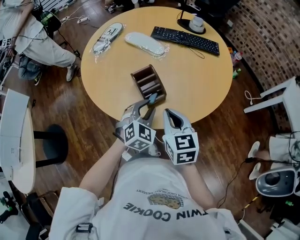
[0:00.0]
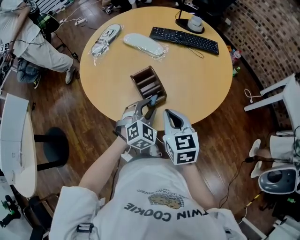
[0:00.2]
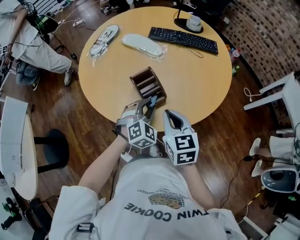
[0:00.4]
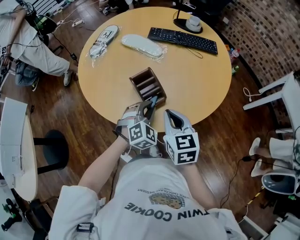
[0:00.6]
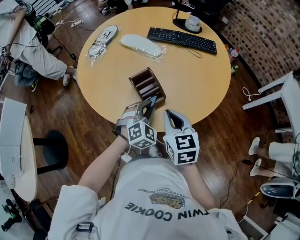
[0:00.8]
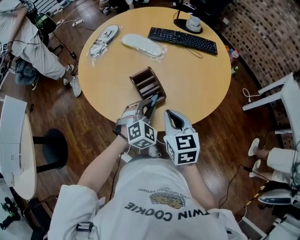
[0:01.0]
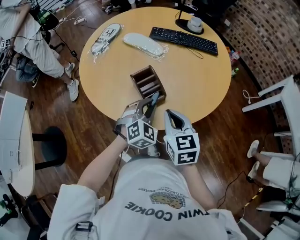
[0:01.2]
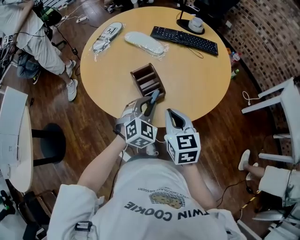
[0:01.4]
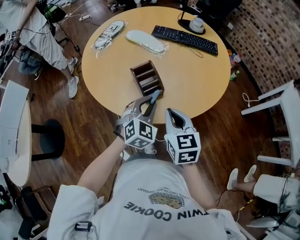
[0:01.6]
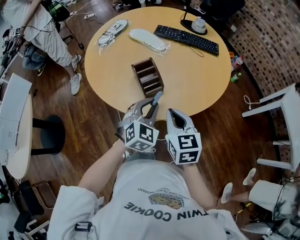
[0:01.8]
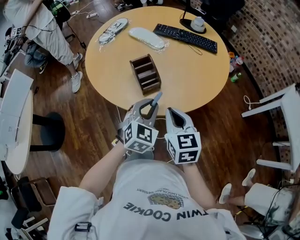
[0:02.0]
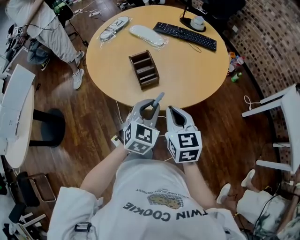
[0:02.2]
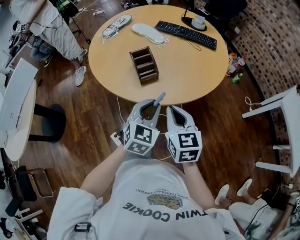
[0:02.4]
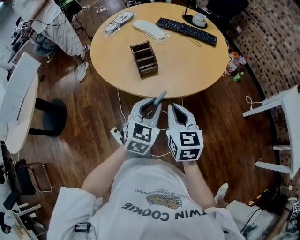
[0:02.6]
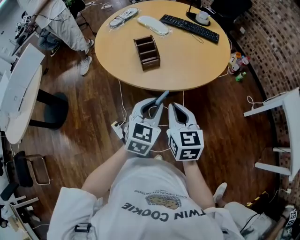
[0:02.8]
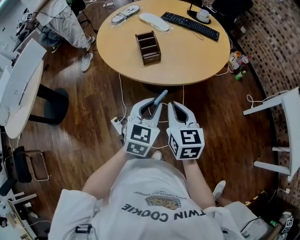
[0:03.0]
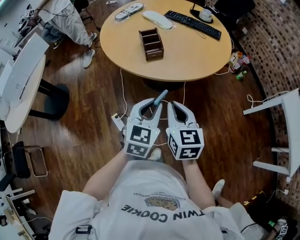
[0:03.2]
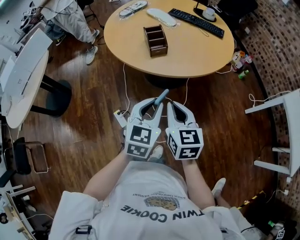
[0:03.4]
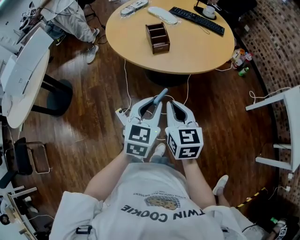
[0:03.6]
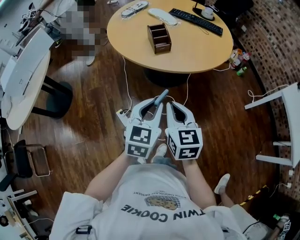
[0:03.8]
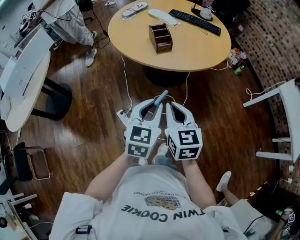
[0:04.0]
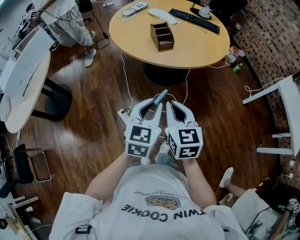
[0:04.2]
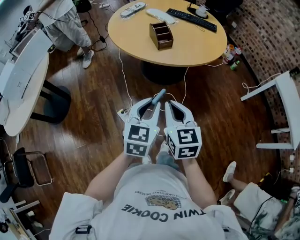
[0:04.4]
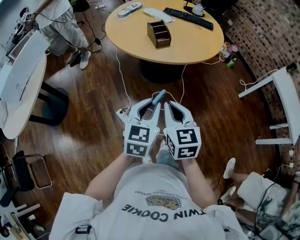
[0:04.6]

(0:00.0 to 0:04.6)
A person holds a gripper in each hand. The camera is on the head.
0:00.0 - 0:01.6: The grippers move only a little.
0:01.6 - 0:03.0: The right gripper is displaced backward and to the right by approximately 20 cm. Meanwhile the left gripper shifts about 25 cm backward, and rotates approximately 30 degrees.
0:03.0 - 0:04.6: Both grippers travel together backward and to the left, some 20 cm.

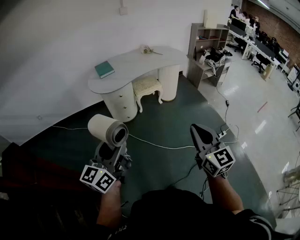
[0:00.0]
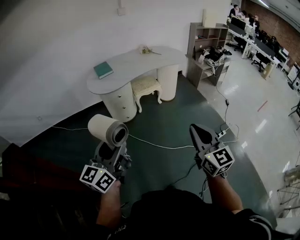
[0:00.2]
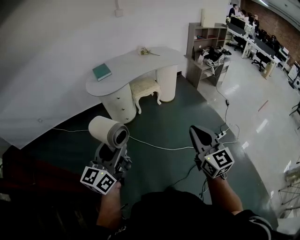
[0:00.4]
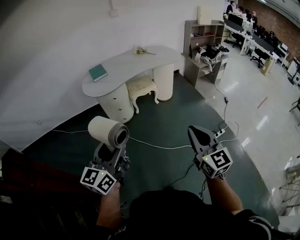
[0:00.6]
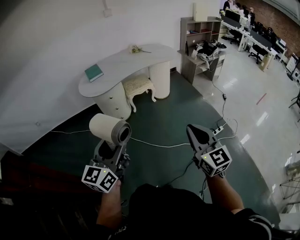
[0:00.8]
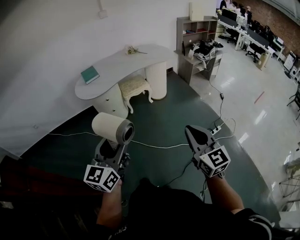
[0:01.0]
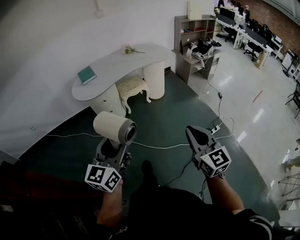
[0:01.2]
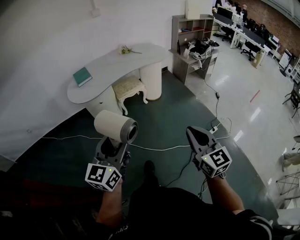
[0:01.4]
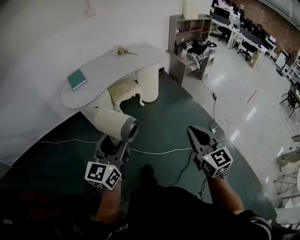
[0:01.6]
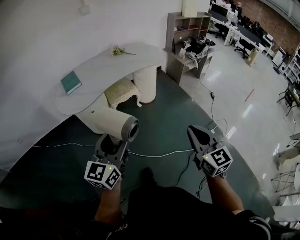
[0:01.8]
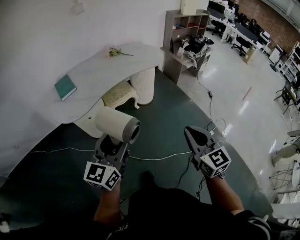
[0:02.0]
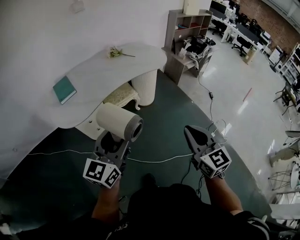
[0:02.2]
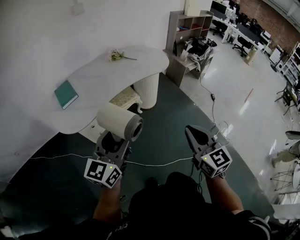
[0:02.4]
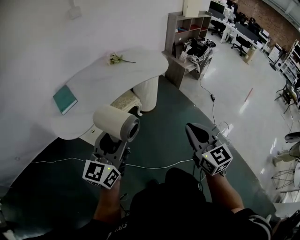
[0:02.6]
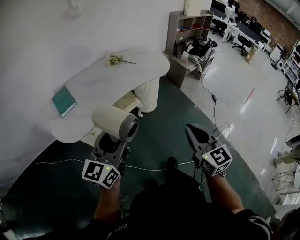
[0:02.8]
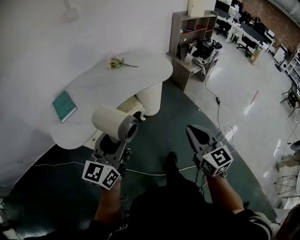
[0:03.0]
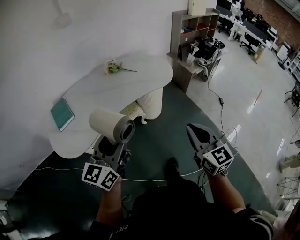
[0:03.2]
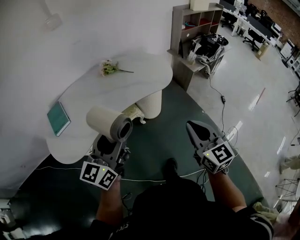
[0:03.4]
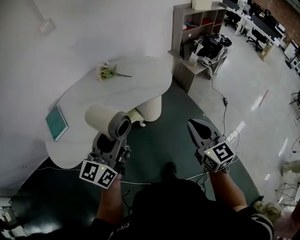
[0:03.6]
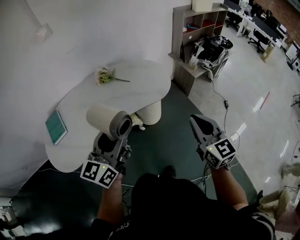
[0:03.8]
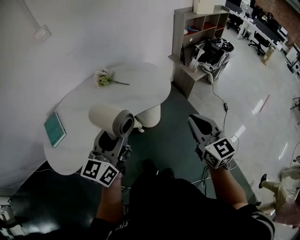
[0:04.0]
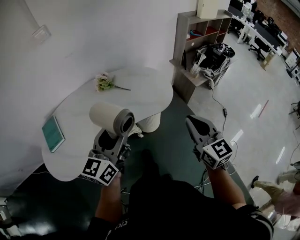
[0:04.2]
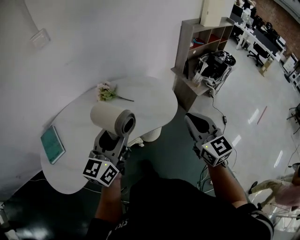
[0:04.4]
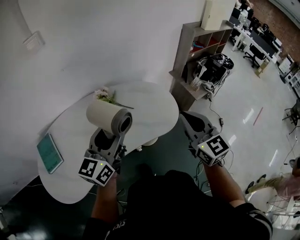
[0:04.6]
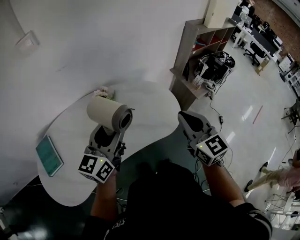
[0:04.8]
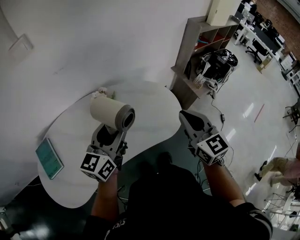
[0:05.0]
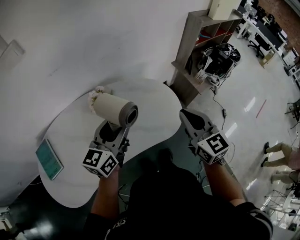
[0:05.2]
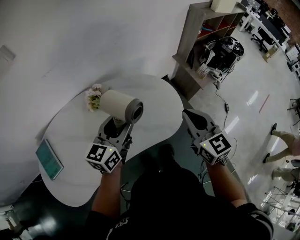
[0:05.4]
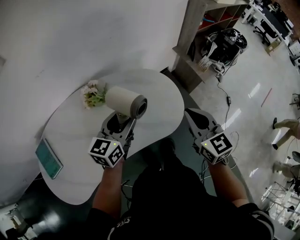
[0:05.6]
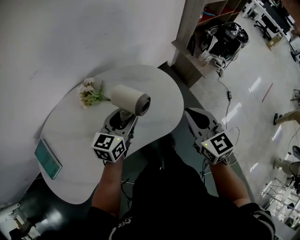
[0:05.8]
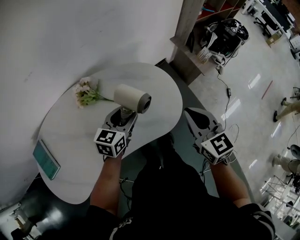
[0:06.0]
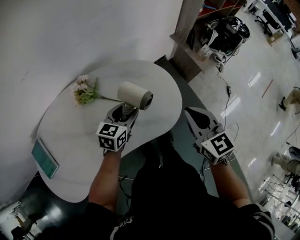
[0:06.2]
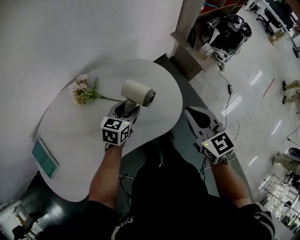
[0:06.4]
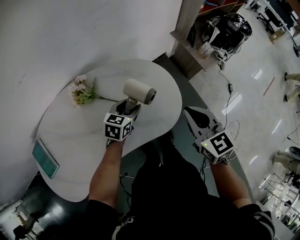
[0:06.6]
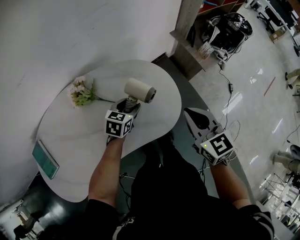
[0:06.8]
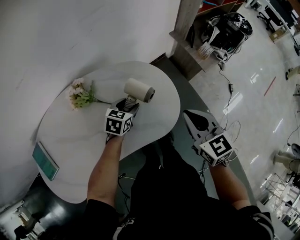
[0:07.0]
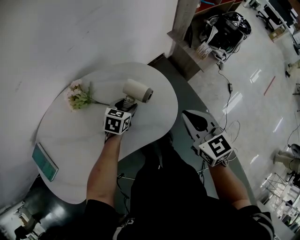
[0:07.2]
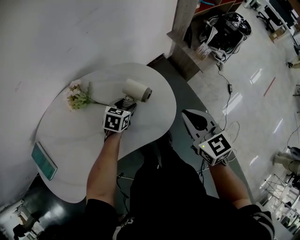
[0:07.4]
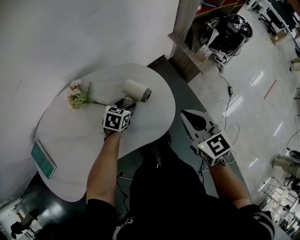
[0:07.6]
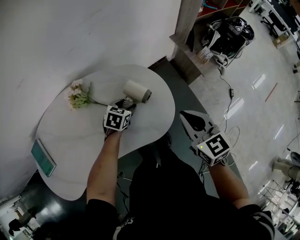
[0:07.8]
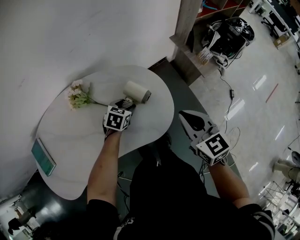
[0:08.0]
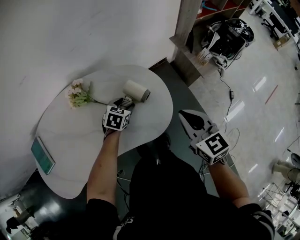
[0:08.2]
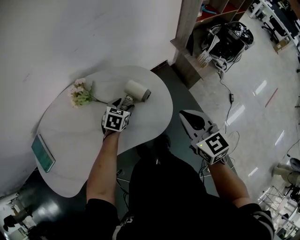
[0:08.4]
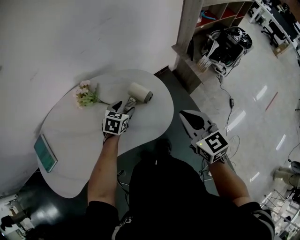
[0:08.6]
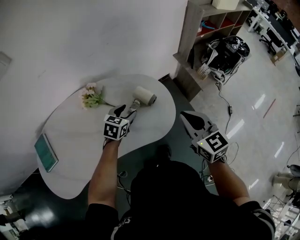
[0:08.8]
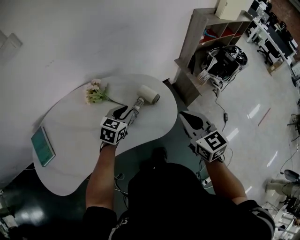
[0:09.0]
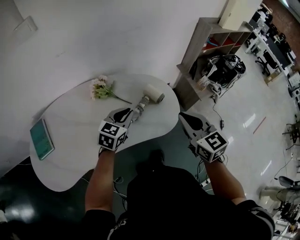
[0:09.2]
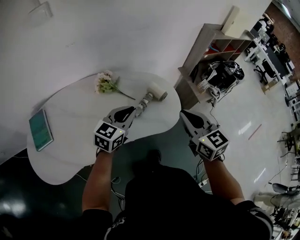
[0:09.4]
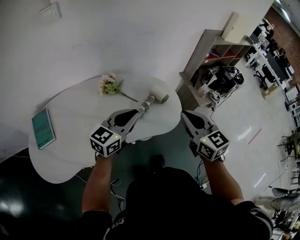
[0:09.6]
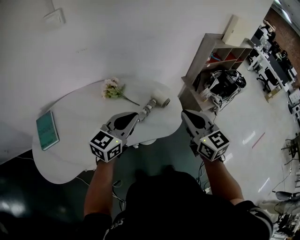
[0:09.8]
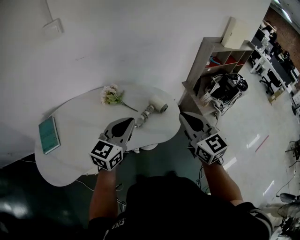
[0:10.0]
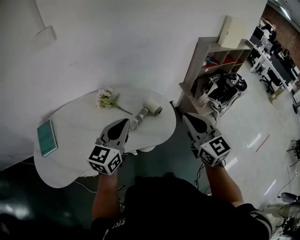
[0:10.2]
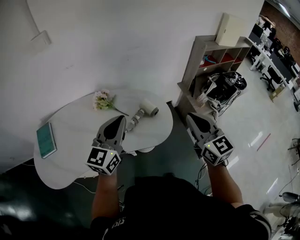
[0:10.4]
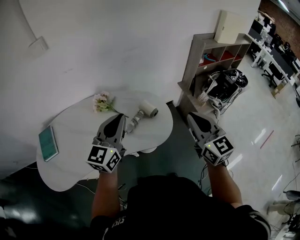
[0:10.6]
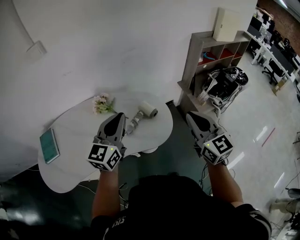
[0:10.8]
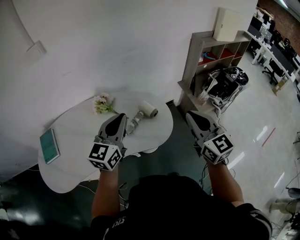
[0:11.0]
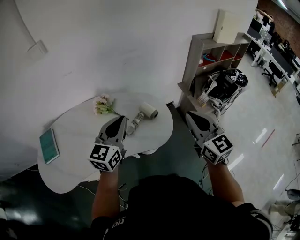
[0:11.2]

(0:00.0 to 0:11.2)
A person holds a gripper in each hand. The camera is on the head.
0:00.0 - 0:01.6: The right gripper moves to the right and forward, approximately 15 cm. Meanwhile the left gripper heads forward and to the right, covering some 25 cm.
0:01.6 - 0:03.2: Both grippers are carried forward, approximately 40 cm.
0:03.2 - 0:04.8: Both grippers are carried forward, roughly 40 cm.
0:04.8 - 0:06.4: The left gripper travels downward, forward and to the right by some 35 cm, and points its fingers some 40 degrees further downward. The right gripper is displaced downward, forward and to the right by some 20 cm.
0:06.4 - 0:08.0: The left gripper is displaced downward by some 10 cm.
0:08.0 - 0:09.6: The left gripper travels upward and backward by roughly 35 cm, tips its fingers upward by approximately 50 degrees, and closes, while the right gripper is displaced upward, to the left and backward by roughly 20 cm.
0:09.6 - 0:11.2: The right gripper goes approximately 15 cm to the right, while the left gripper is displaced upward and to the right by approximately 10 cm, and swivels roughly 20 degrees.

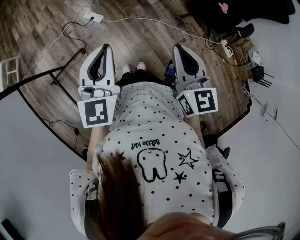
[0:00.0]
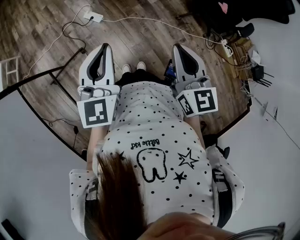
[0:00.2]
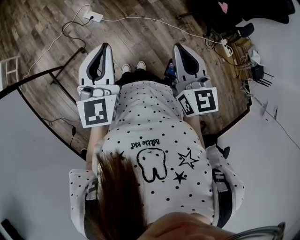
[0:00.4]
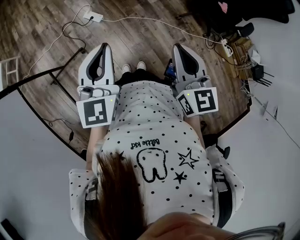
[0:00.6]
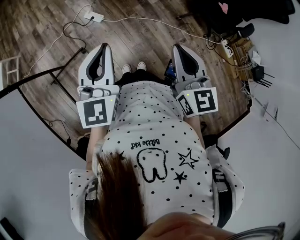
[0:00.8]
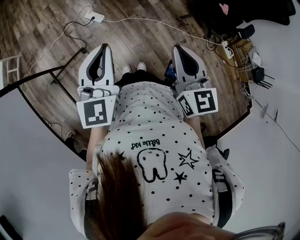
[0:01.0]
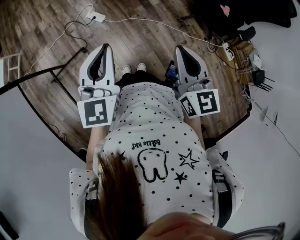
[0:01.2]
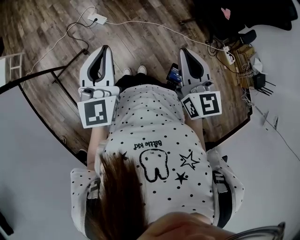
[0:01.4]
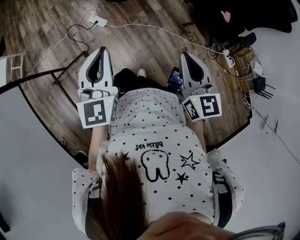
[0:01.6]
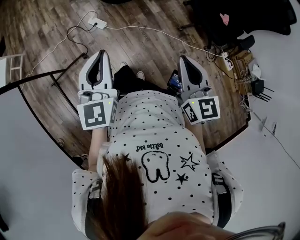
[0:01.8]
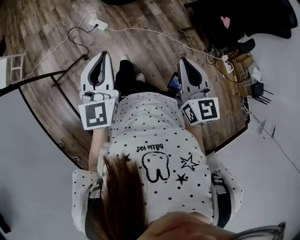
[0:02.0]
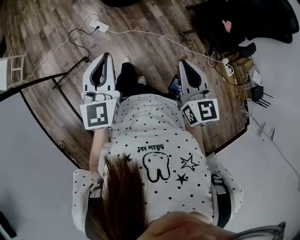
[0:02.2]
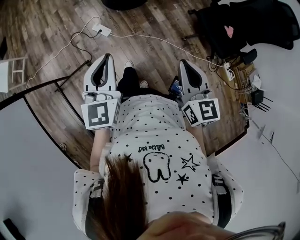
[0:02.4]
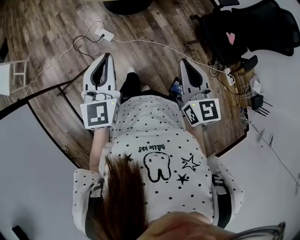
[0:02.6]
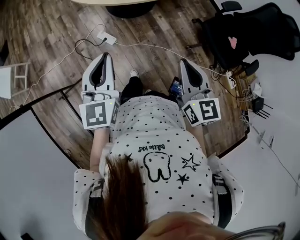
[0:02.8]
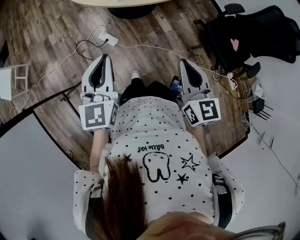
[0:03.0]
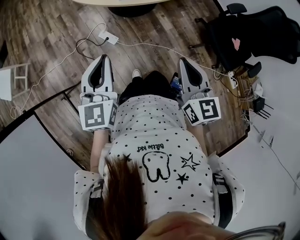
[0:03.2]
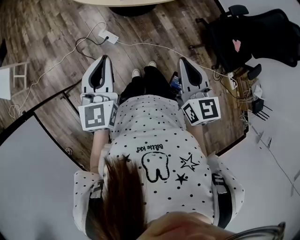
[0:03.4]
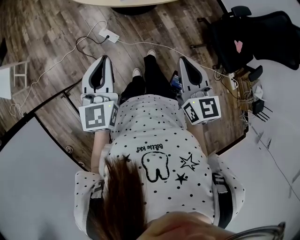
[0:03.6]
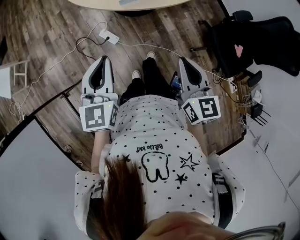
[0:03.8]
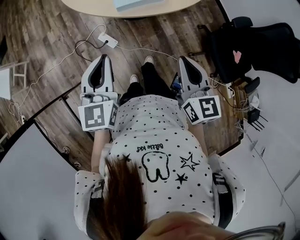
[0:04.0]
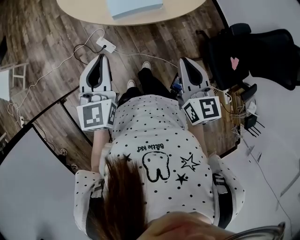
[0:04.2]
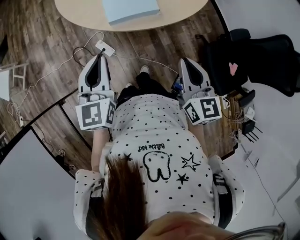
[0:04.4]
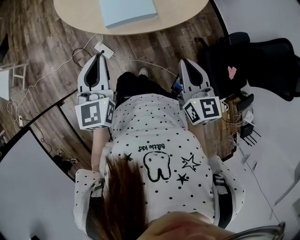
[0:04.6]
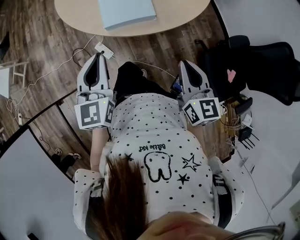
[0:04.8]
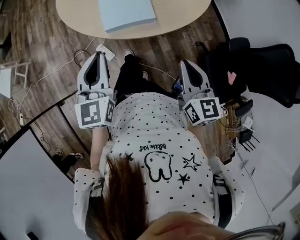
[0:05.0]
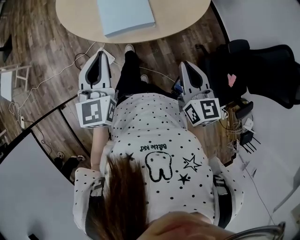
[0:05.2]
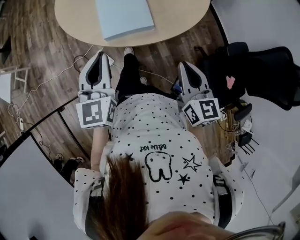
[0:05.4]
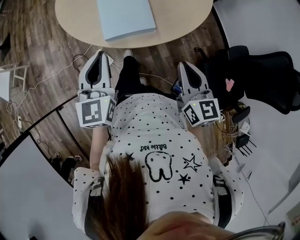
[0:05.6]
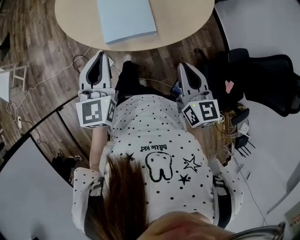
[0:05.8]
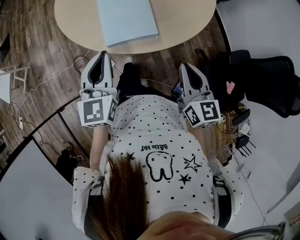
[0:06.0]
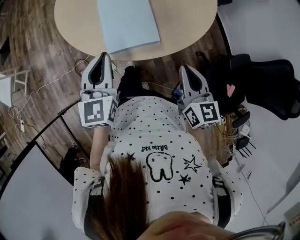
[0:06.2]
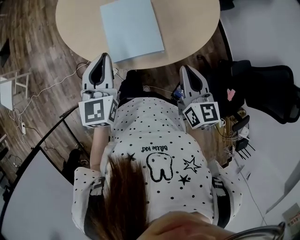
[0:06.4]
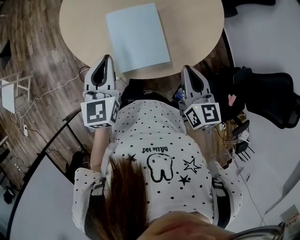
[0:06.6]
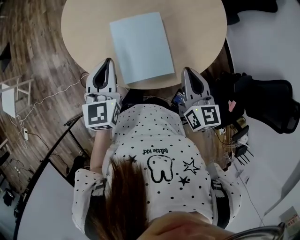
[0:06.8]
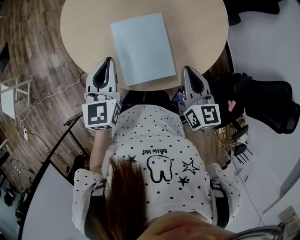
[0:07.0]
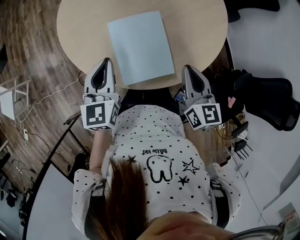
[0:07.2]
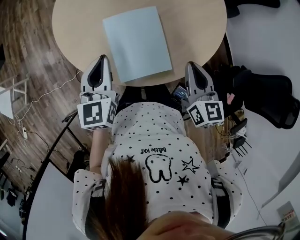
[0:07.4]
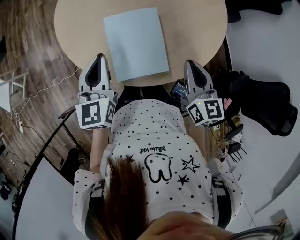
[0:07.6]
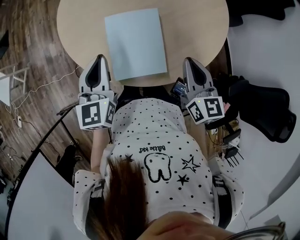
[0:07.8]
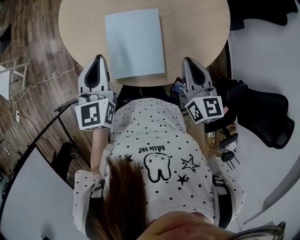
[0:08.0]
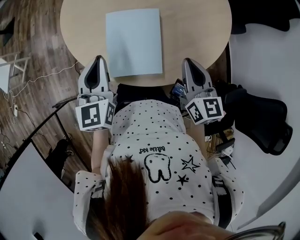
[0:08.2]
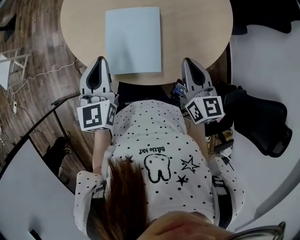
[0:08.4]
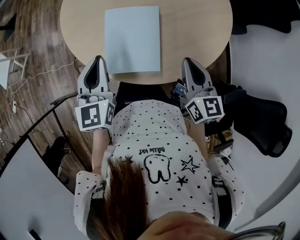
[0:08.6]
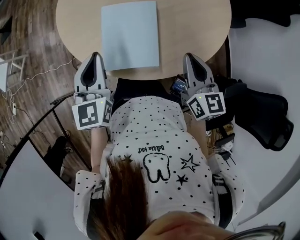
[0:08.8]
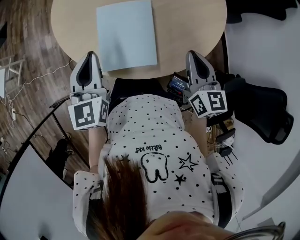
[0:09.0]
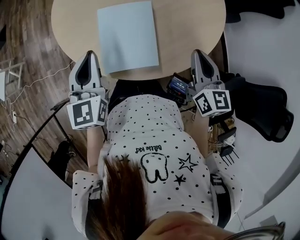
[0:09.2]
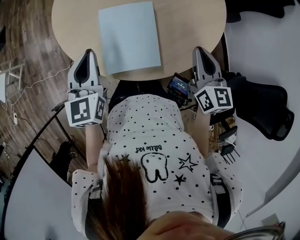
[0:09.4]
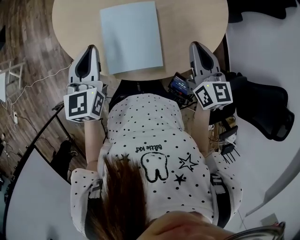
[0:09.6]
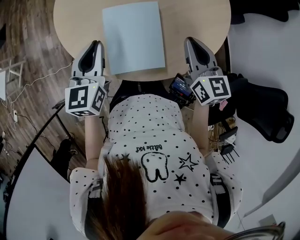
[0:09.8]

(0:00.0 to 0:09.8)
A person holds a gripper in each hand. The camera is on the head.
0:00.0 - 0:01.4: There are only small adjustments of the grippers.
0:01.4 - 0:02.8: The right gripper goes some 15 cm forward; the left gripper shifts approximately 20 cm forward and to the left.
0:02.8 - 0:04.2: Both grippers move forward, roughly 20 cm.
0:04.2 - 0:05.6: The two grippers go approximately 10 cm forward and to the right.
0:05.6 - 0:07.0: Both grippers move forward, roughly 25 cm.
0:07.0 - 0:08.4: The right gripper moves to the right, roughly 5 cm, while the left gripper moves roughly 5 cm.
0:08.4 - 0:09.8: The two grippers go approximately 5 cm forward.
